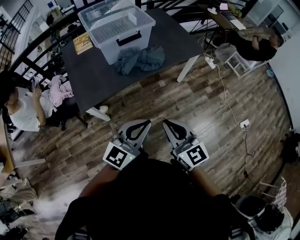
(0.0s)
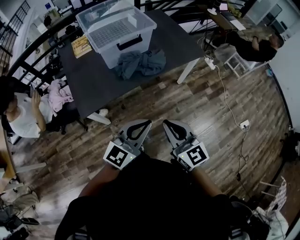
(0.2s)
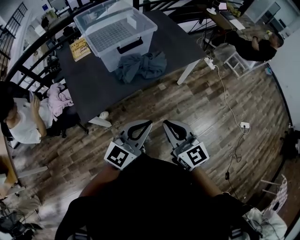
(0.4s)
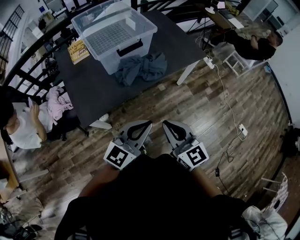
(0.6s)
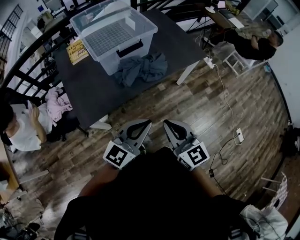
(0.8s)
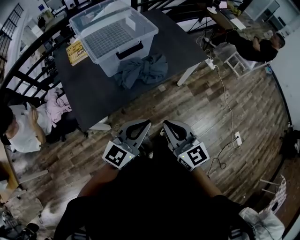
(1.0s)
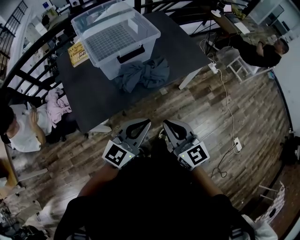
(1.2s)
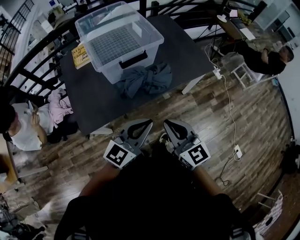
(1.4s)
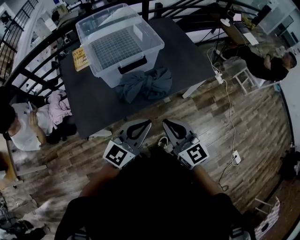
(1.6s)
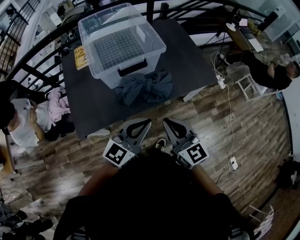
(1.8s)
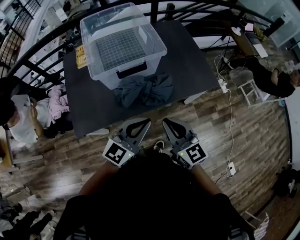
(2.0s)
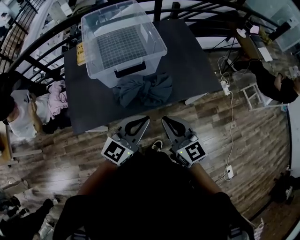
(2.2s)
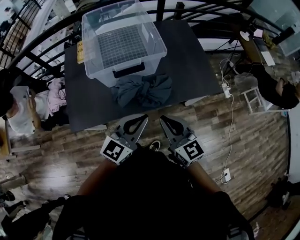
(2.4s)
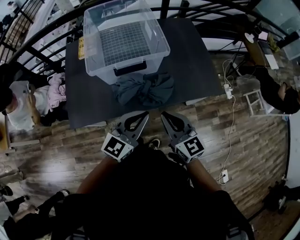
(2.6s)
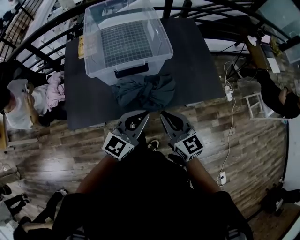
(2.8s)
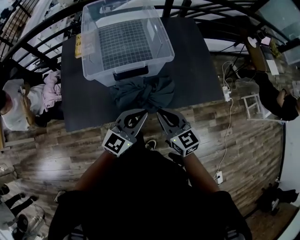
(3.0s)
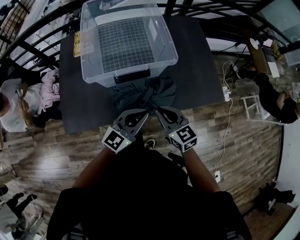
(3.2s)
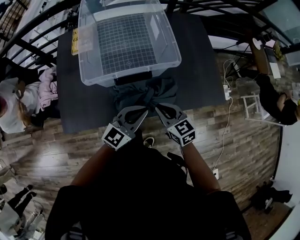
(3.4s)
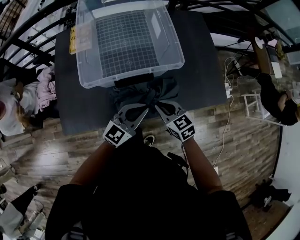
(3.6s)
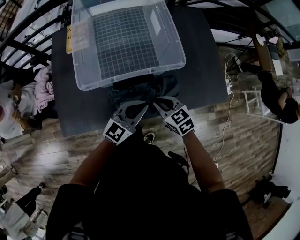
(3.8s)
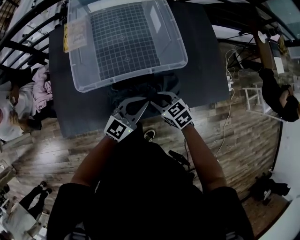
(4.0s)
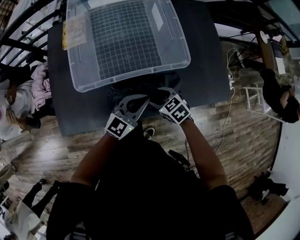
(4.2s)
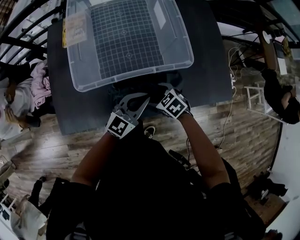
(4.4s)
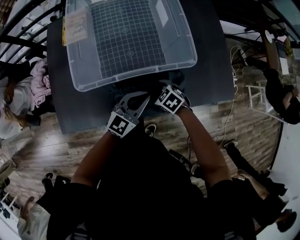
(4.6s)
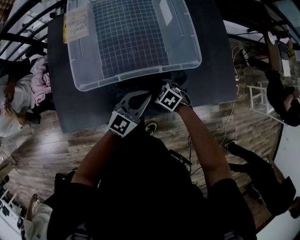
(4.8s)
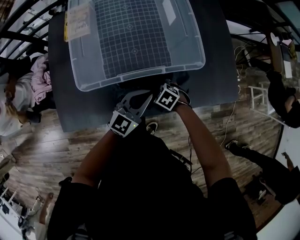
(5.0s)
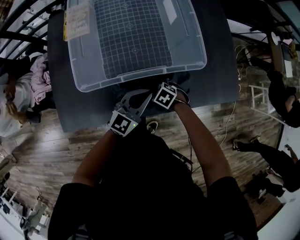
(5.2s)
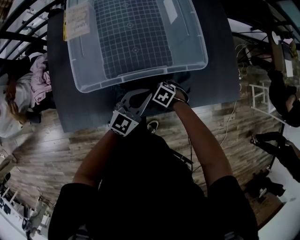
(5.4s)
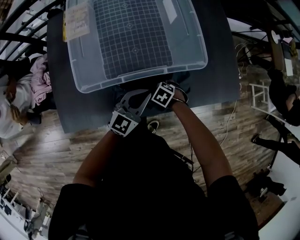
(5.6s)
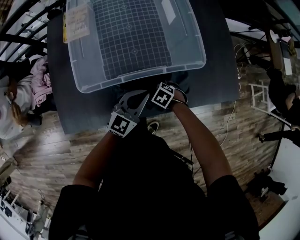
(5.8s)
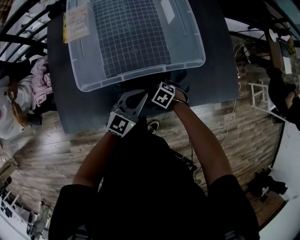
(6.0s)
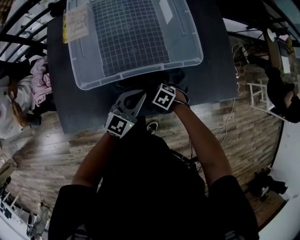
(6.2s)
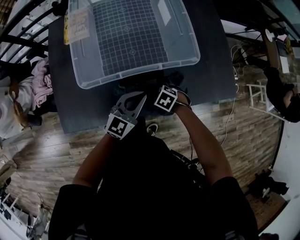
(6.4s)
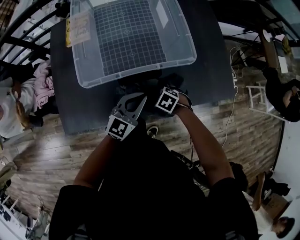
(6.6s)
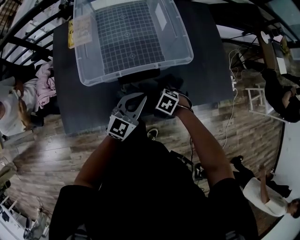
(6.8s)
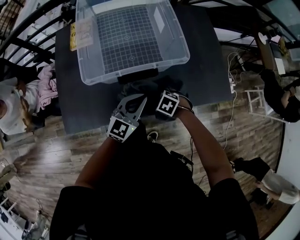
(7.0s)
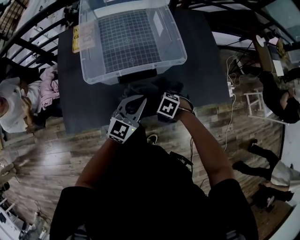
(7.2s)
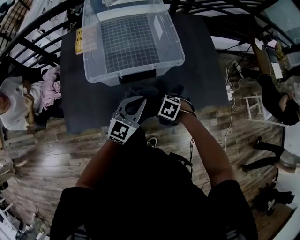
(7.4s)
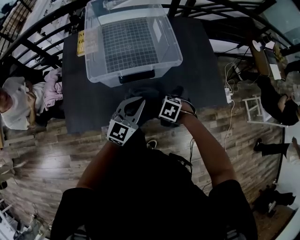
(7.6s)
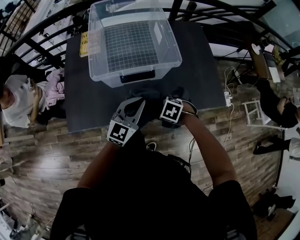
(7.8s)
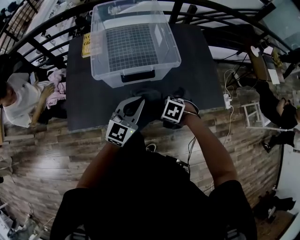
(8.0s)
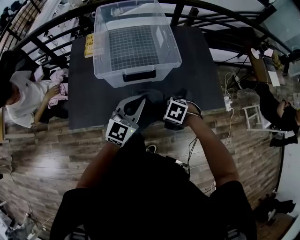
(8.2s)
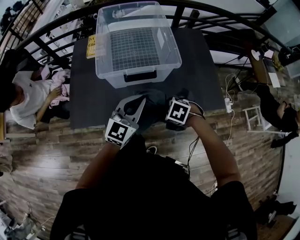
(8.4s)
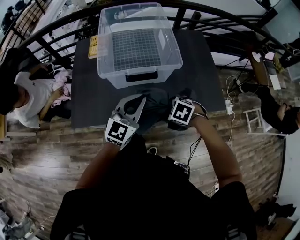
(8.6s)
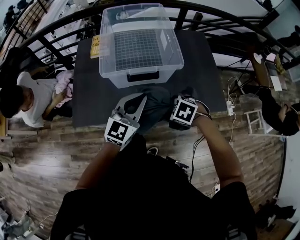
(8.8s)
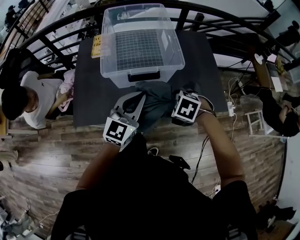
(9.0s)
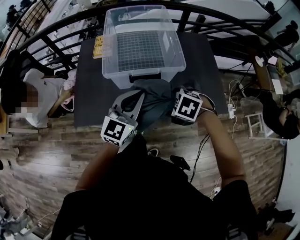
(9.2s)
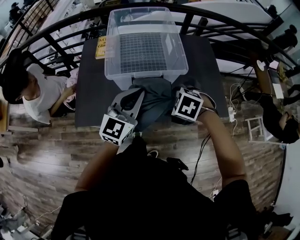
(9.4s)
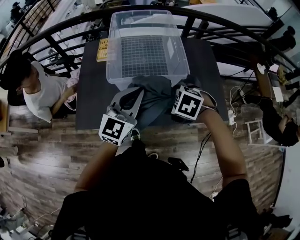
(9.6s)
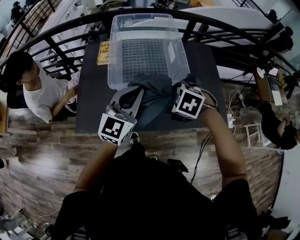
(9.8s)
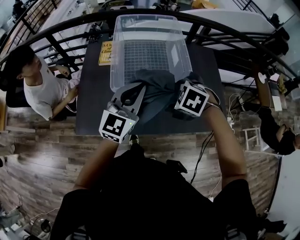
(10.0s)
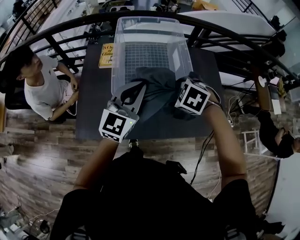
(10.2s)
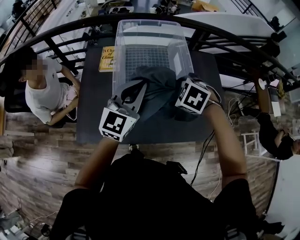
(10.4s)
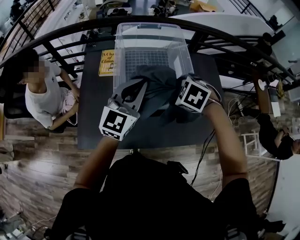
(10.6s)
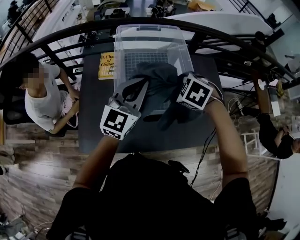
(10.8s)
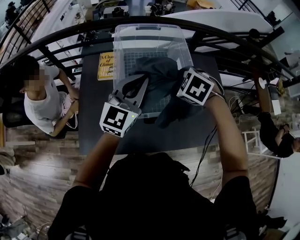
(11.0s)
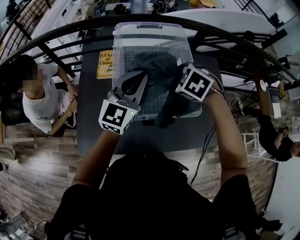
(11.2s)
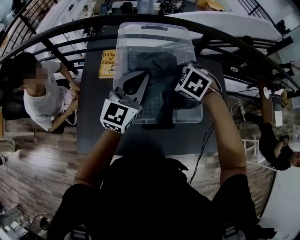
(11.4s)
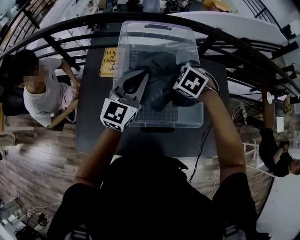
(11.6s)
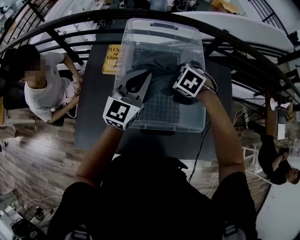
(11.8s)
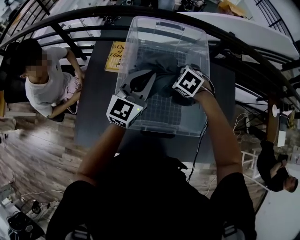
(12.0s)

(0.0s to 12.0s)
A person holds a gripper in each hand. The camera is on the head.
0.0s - 1.6s: The two grippers go some 25 cm forward.
1.6s - 3.0s: The grippers both shift forward and downward by some 20 cm.
3.0s - 4.4s: The right gripper travels downward and forward by some 25 cm, points its fingers some 40 degrees further downward, and opens up. The left gripper shifts about 20 cm forward and downward.
4.4s - 6.0s: The right gripper travels downward by approximately 10 cm.
6.0s - 7.6s: The grippers both shift upward by about 15 cm.
7.6s - 9.0s: The grippers both shift upward by roughly 15 cm.
9.0s - 10.4s: The right gripper shifts by approximately 20 cm. The left gripper shifts by some 20 cm.
10.4s - 12.0s: The left gripper travels forward by about 20 cm. Meanwhile the right gripper goes roughly 25 cm forward and downward.

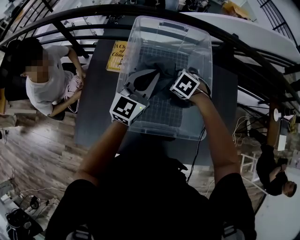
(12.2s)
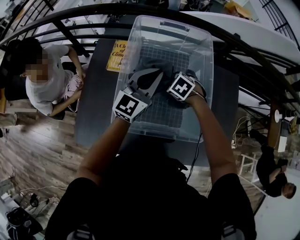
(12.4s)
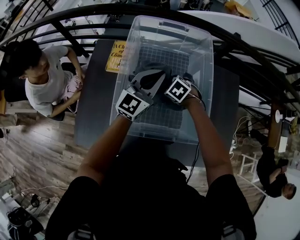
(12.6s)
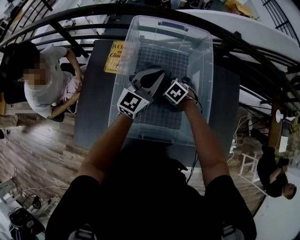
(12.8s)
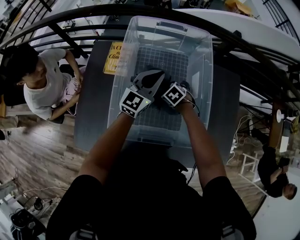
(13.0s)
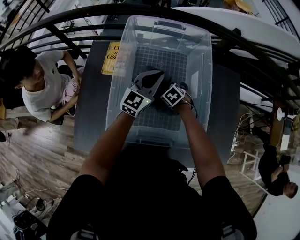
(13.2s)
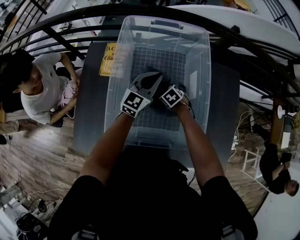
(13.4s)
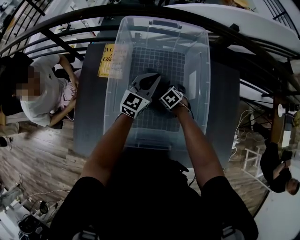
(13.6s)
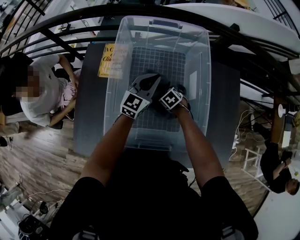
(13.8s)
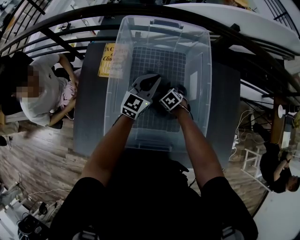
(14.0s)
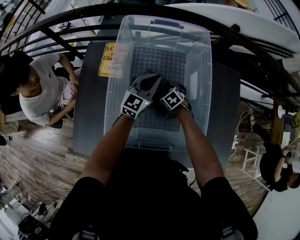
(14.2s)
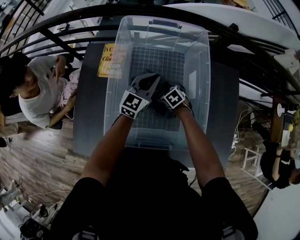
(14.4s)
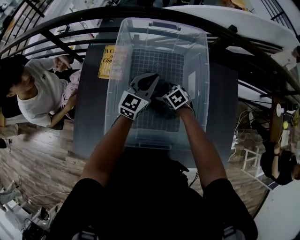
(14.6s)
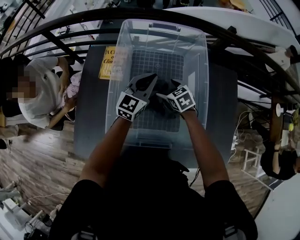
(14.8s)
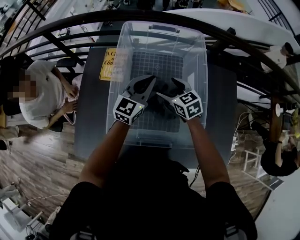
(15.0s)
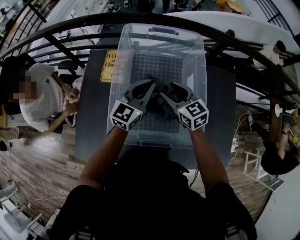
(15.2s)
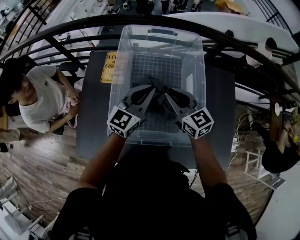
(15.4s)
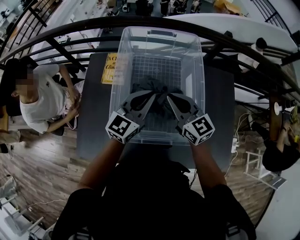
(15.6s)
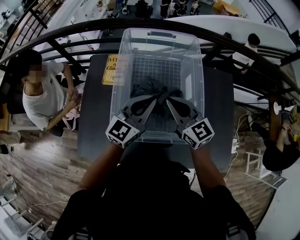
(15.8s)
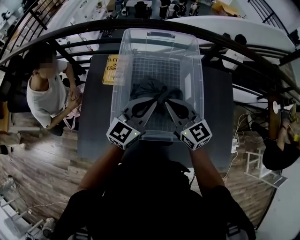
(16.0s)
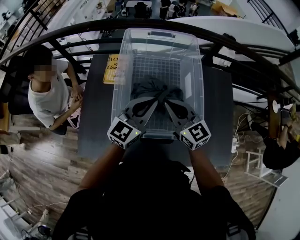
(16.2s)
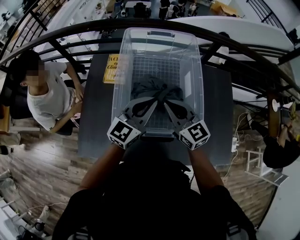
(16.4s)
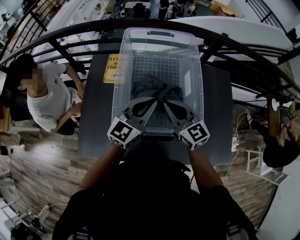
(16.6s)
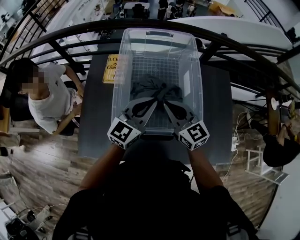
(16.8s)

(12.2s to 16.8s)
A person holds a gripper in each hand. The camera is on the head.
12.2s - 13.8s: The right gripper moves downward, about 20 cm. The left gripper shifts about 15 cm downward, forward and to the right.
13.8s - 15.2s: The right gripper goes approximately 25 cm upward, and tips its fingers upward by about 50 degrees; the left gripper is displaced upward by some 10 cm.
15.2s - 16.8s: The two grippers go some 15 cm backward and upward. The right gripper closes.

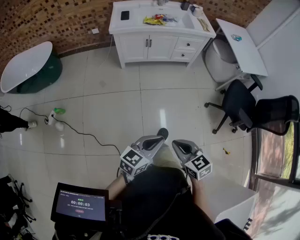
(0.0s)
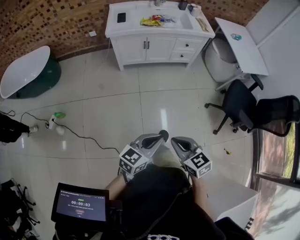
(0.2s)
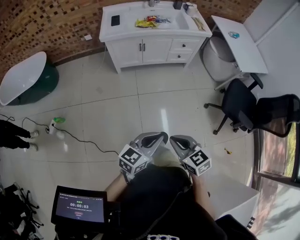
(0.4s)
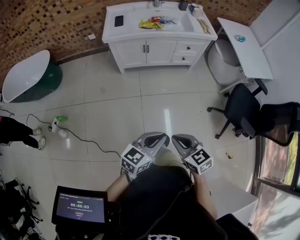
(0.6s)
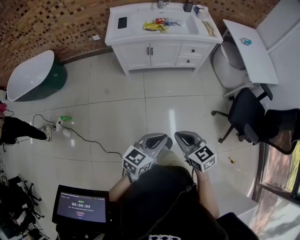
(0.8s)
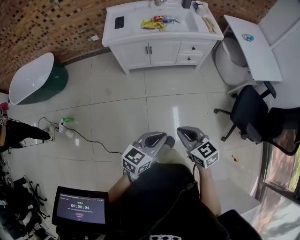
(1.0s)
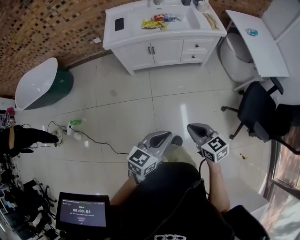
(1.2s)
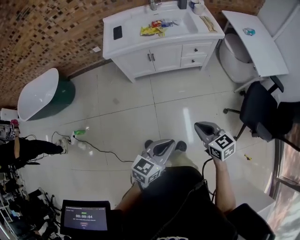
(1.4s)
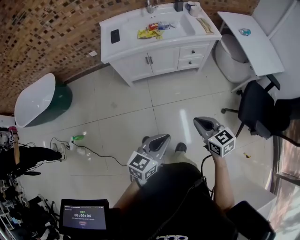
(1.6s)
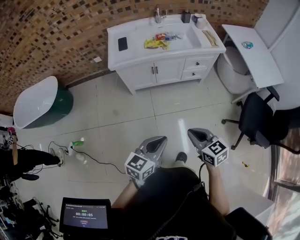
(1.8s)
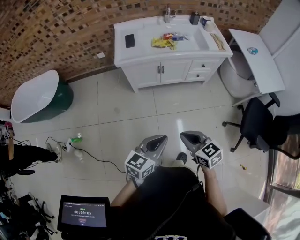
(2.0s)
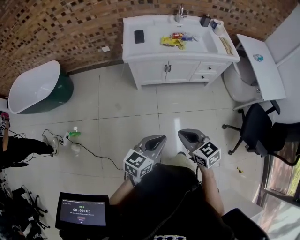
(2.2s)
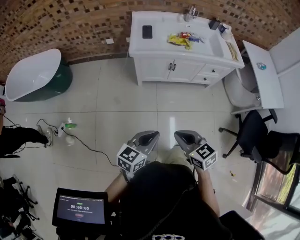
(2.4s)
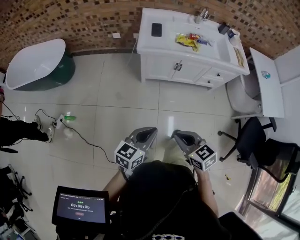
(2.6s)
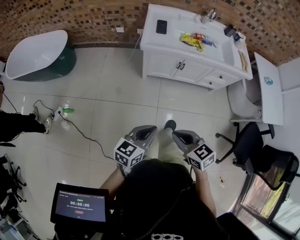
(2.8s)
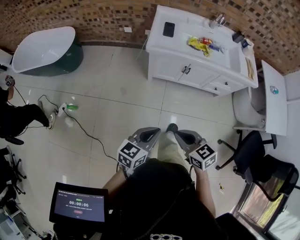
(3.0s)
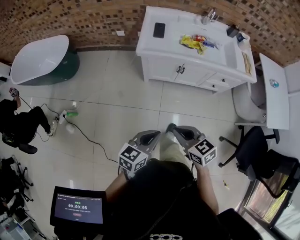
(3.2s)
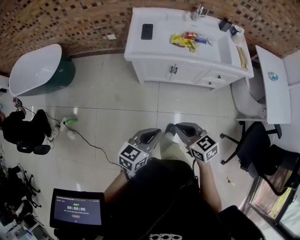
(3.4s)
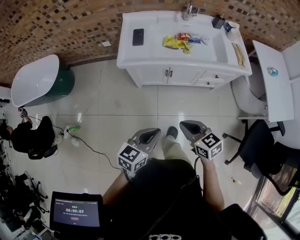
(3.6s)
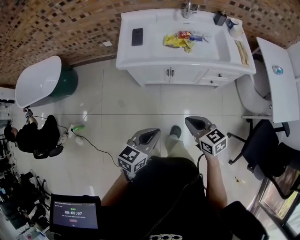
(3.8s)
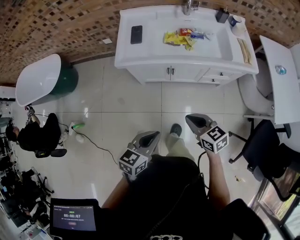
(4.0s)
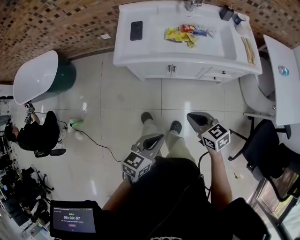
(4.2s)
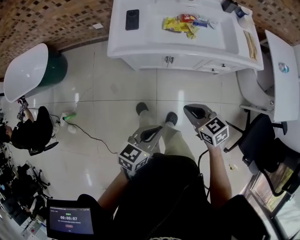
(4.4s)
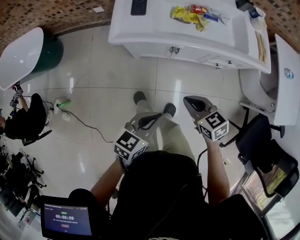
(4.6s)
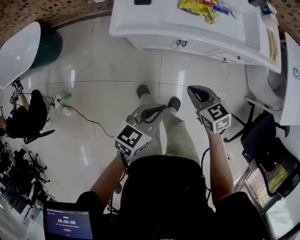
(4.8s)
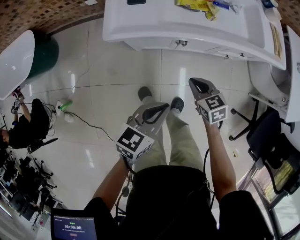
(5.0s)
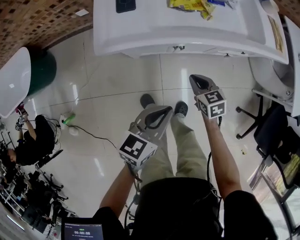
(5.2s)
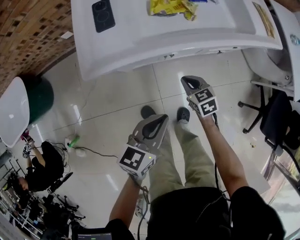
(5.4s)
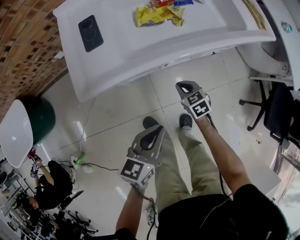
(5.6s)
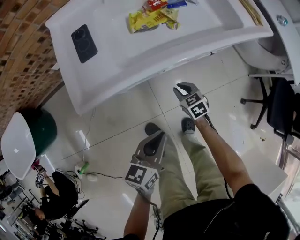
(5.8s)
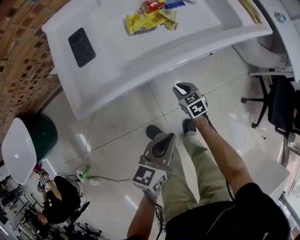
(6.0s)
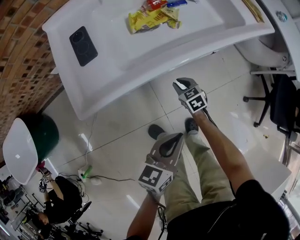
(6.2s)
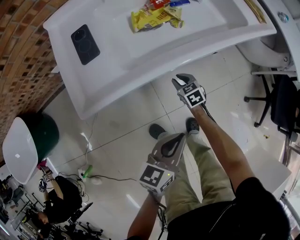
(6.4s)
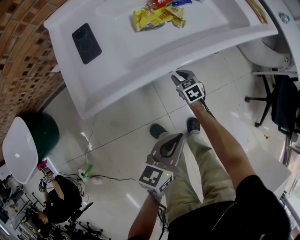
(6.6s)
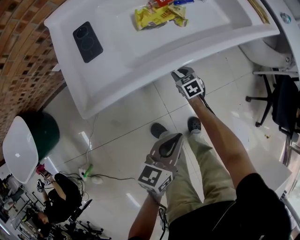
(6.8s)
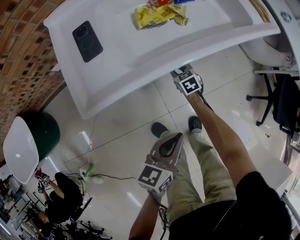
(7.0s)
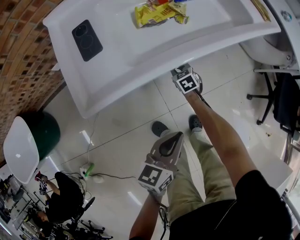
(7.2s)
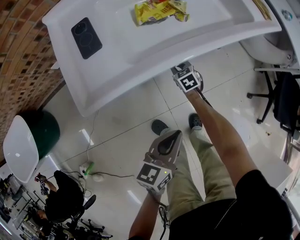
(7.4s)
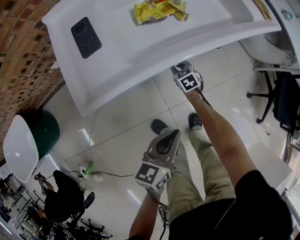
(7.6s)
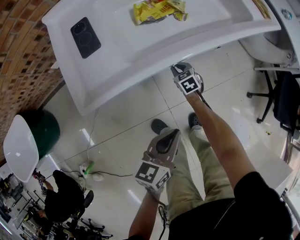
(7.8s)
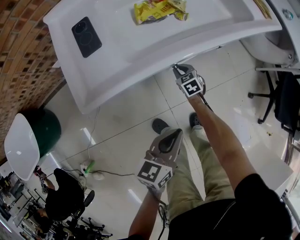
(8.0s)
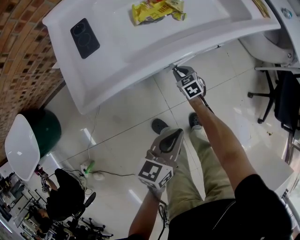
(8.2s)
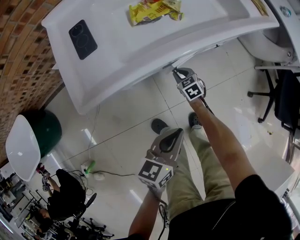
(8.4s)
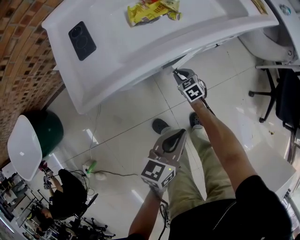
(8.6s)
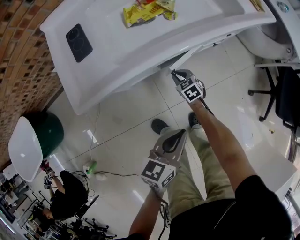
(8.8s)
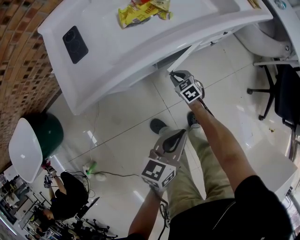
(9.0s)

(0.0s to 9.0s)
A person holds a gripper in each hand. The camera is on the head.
0.0s - 1.6s: Both grippers move forward, about 30 cm.
1.6s - 3.0s: The right gripper shifts about 25 cm to the left, and rotates about 20 degrees; the left gripper is displaced to the left and forward by roughly 25 cm.
3.0s - 4.4s: The two grippers go roughly 25 cm forward and to the right.
4.4s - 6.0s: The left gripper travels downward and forward by roughly 20 cm. The right gripper goes some 40 cm downward and forward, and rotates approximately 30 degrees.
6.0s - 7.6s: The right gripper goes some 10 cm forward and downward.
7.6s - 9.0s: The left gripper moves to the right, approximately 10 cm; the right gripper is displaced backward by about 5 cm.
